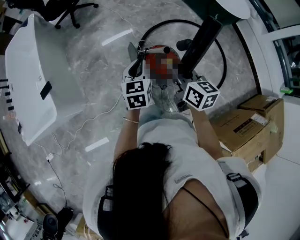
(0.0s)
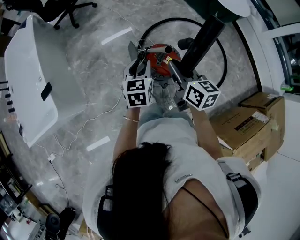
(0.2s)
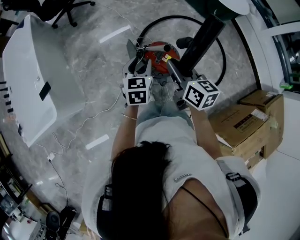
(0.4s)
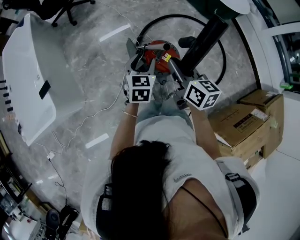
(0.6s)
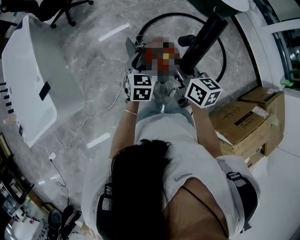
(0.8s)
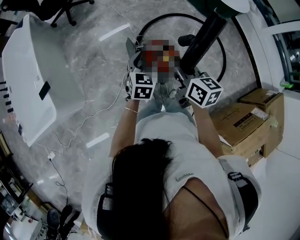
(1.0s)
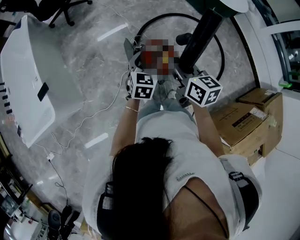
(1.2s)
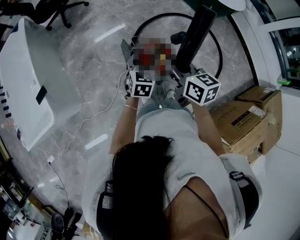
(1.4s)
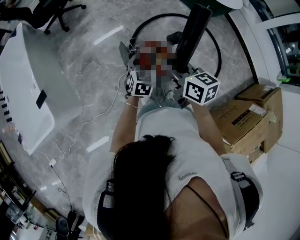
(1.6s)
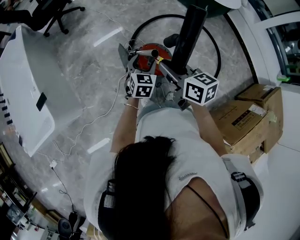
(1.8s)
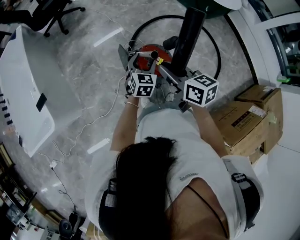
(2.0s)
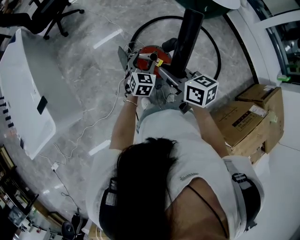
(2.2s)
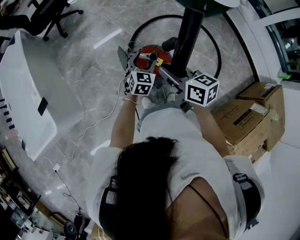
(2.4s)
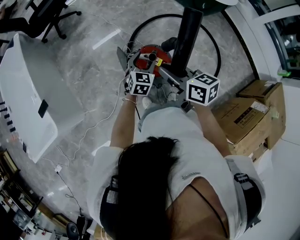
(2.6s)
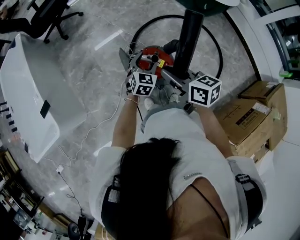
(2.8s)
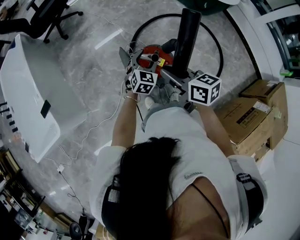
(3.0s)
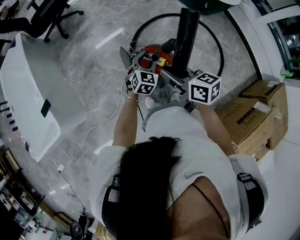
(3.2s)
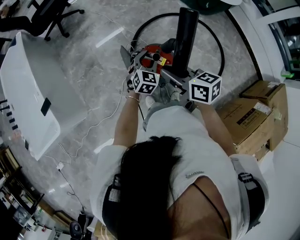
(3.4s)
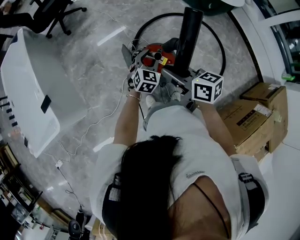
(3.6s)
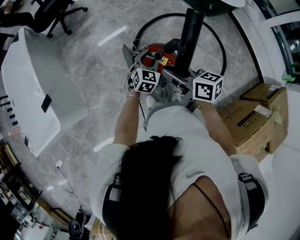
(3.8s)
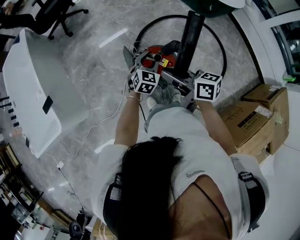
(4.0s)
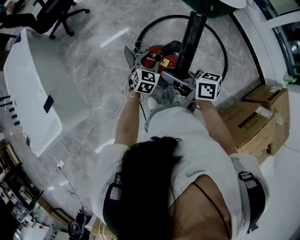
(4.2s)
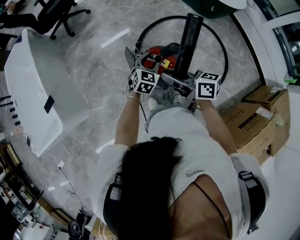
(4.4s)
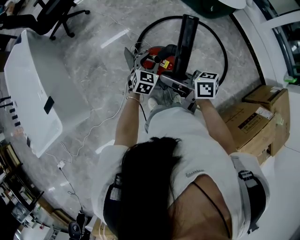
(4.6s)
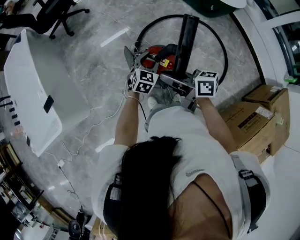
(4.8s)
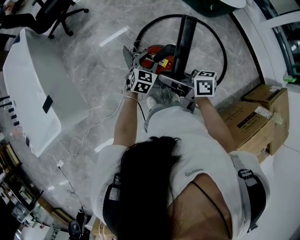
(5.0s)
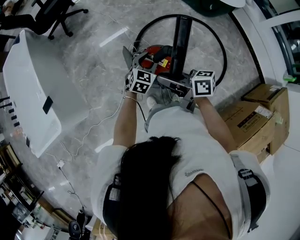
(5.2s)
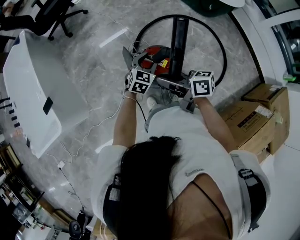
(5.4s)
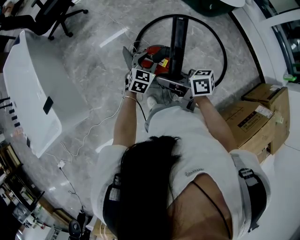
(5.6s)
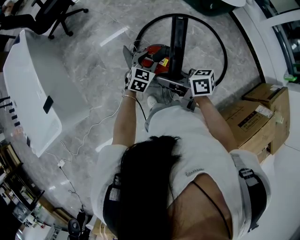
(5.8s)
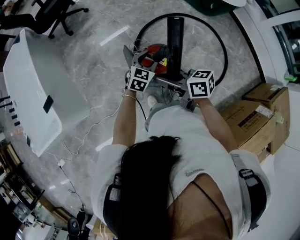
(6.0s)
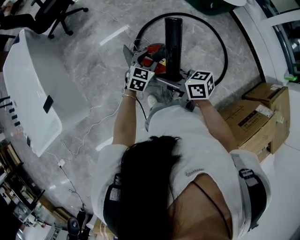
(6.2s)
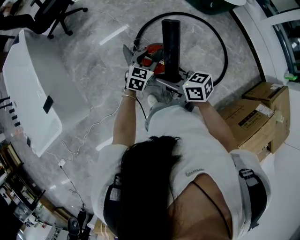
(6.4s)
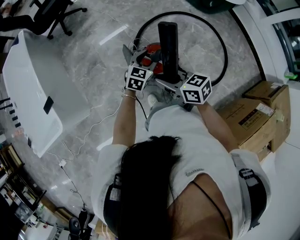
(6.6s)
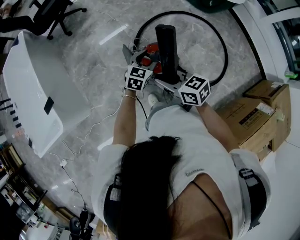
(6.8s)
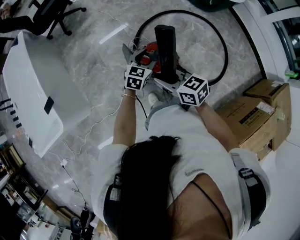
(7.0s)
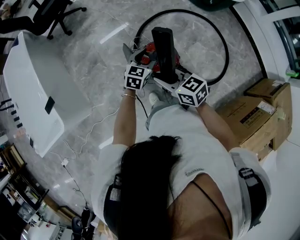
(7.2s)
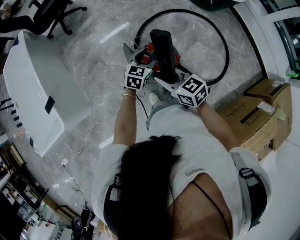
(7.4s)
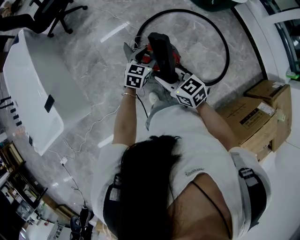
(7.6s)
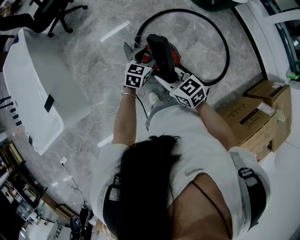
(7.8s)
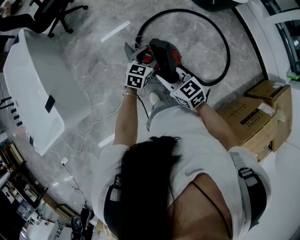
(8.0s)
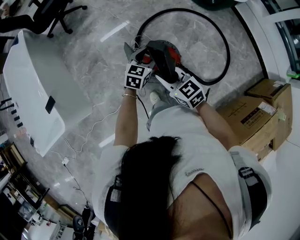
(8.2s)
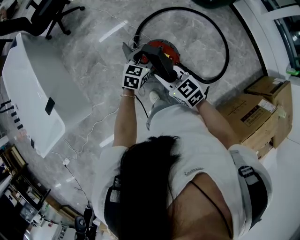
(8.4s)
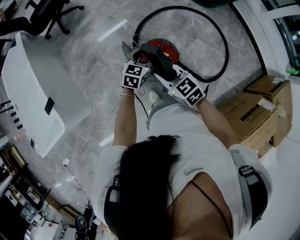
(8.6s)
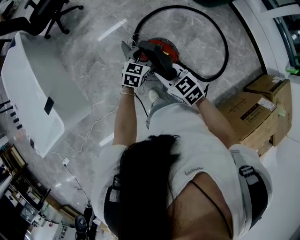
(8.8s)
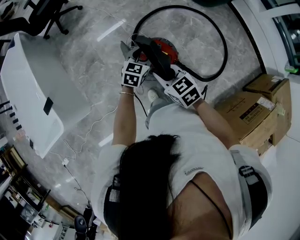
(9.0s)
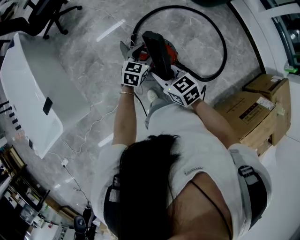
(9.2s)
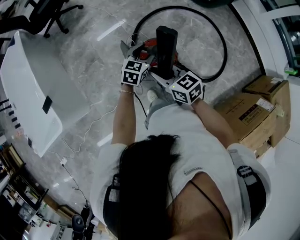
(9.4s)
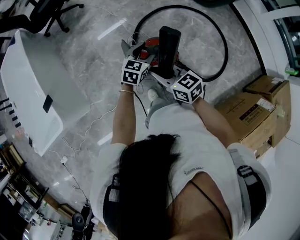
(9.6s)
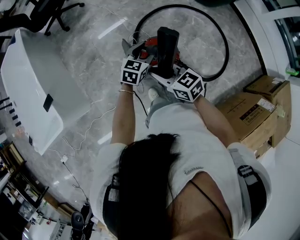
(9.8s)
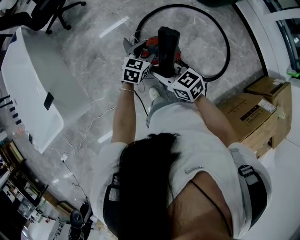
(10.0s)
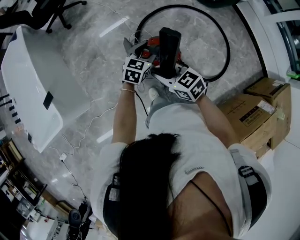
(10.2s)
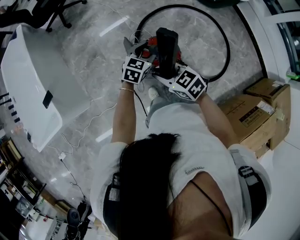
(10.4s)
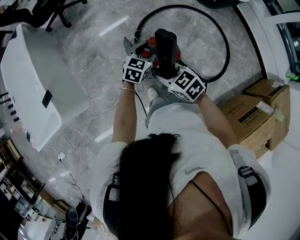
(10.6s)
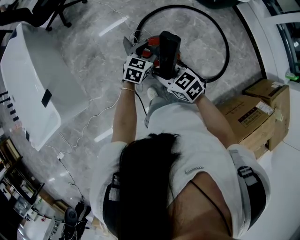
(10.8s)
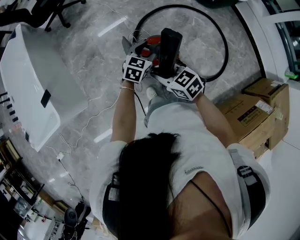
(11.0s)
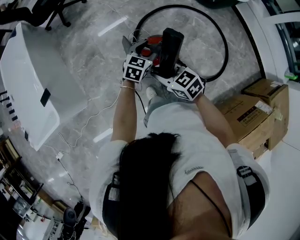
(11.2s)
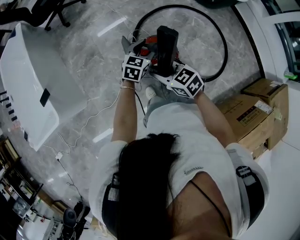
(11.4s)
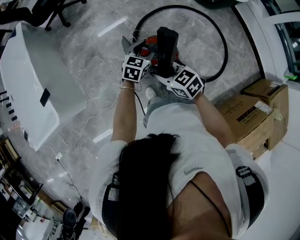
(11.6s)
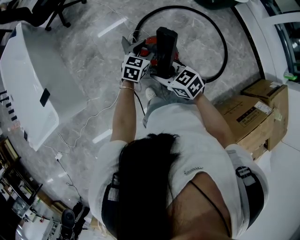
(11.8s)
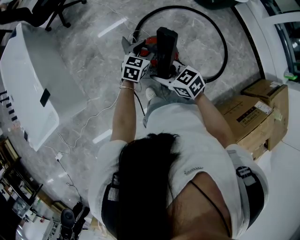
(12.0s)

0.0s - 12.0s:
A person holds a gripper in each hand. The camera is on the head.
0.0s - 1.6s: The left gripper goes some 10 cm to the right and downward, swivels roughly 20 degrees, and opens.
1.6s - 3.0s: The left gripper ends up roughly 5 cm from where it was.
3.0s - 4.4s: The left gripper closes.
4.4s - 6.0s: The grippers move only a little.
6.0s - 7.6s: The right gripper changes its angle by about 30 degrees.
7.6s - 10.4s: The grippers make only small movements.
10.4s - 12.0s: The right gripper opens its fingers.

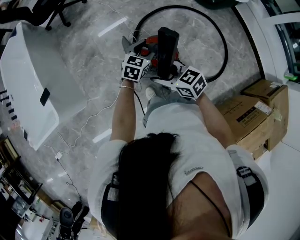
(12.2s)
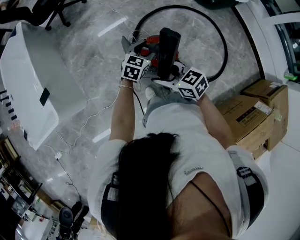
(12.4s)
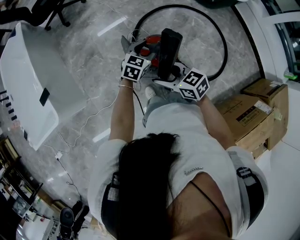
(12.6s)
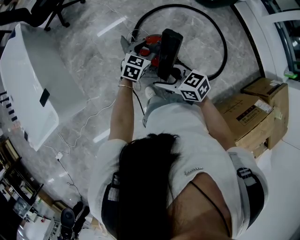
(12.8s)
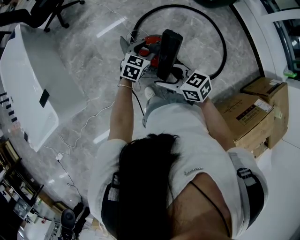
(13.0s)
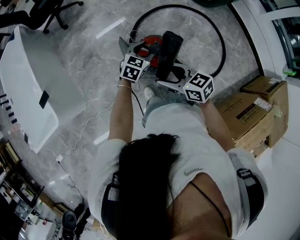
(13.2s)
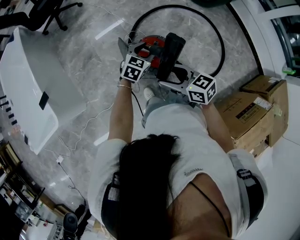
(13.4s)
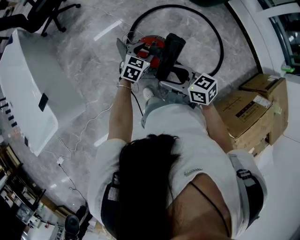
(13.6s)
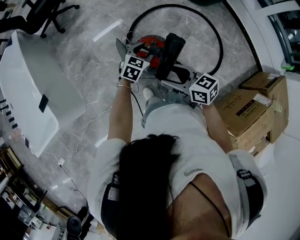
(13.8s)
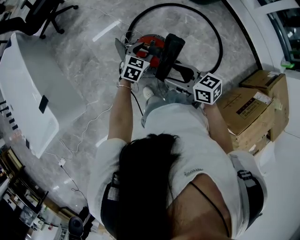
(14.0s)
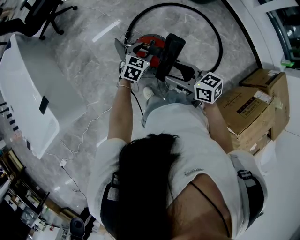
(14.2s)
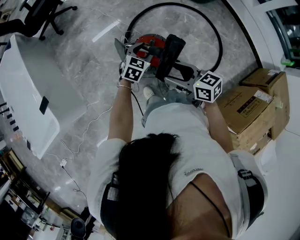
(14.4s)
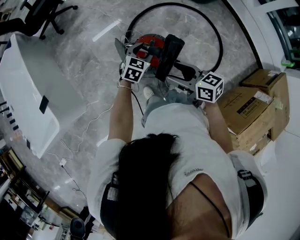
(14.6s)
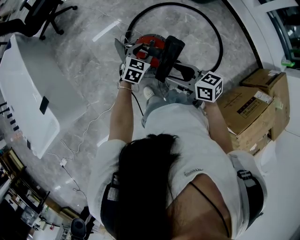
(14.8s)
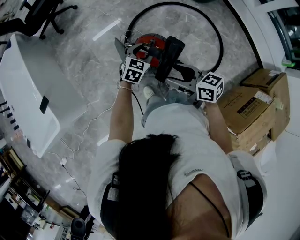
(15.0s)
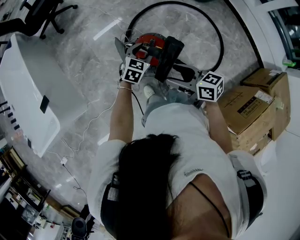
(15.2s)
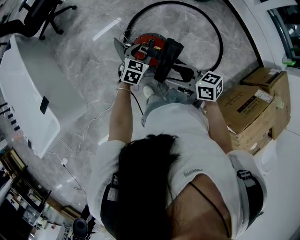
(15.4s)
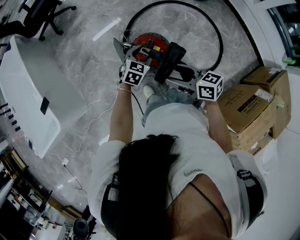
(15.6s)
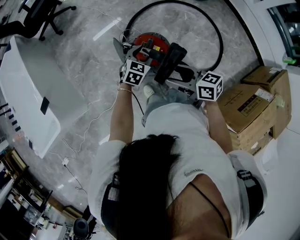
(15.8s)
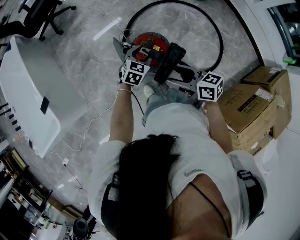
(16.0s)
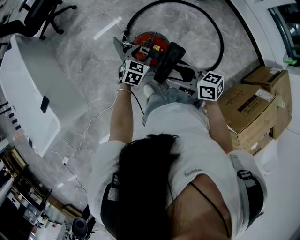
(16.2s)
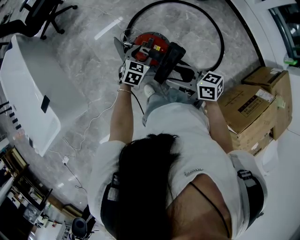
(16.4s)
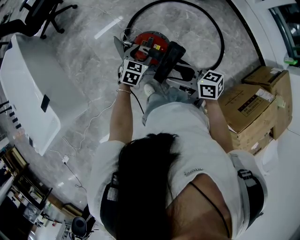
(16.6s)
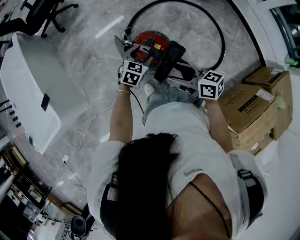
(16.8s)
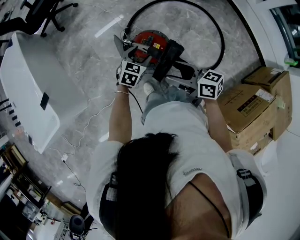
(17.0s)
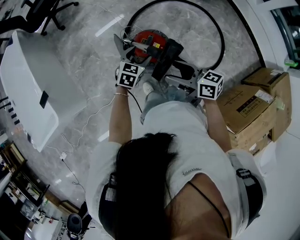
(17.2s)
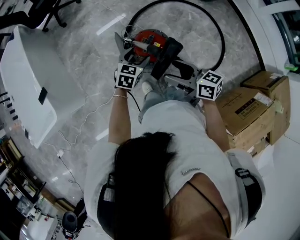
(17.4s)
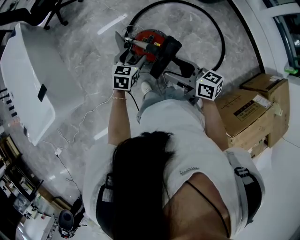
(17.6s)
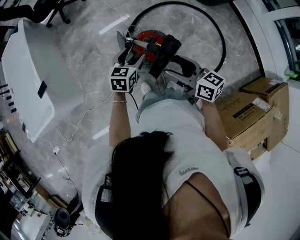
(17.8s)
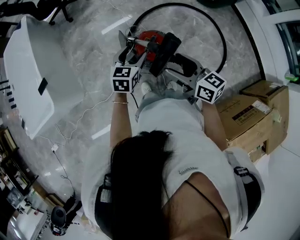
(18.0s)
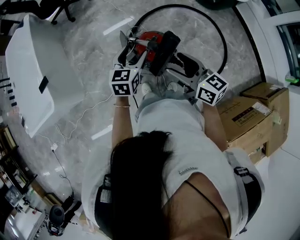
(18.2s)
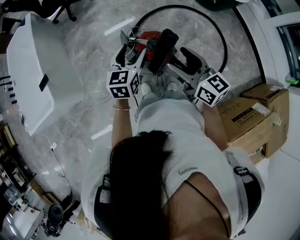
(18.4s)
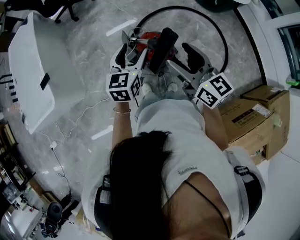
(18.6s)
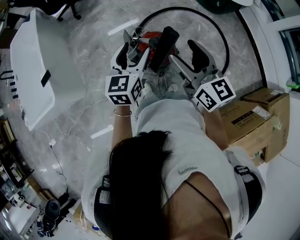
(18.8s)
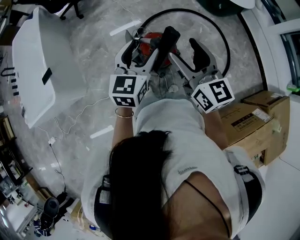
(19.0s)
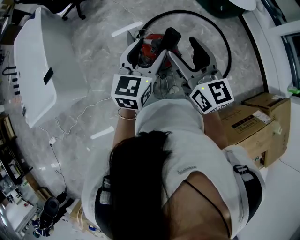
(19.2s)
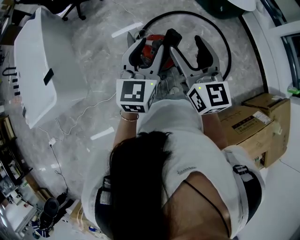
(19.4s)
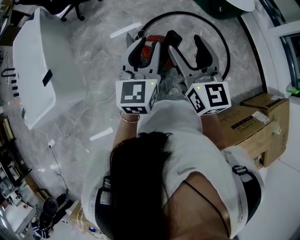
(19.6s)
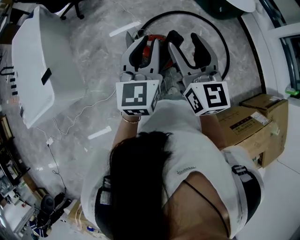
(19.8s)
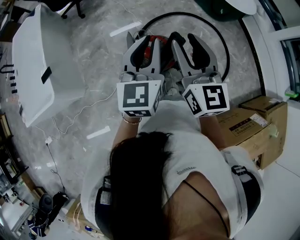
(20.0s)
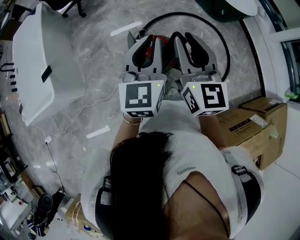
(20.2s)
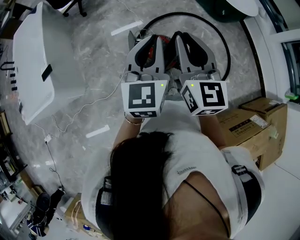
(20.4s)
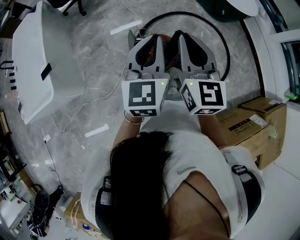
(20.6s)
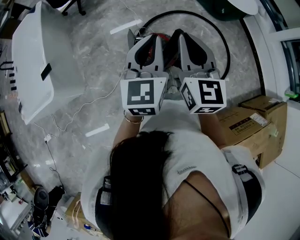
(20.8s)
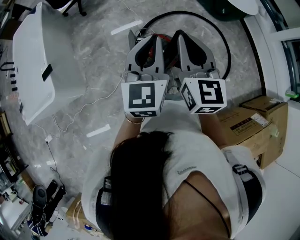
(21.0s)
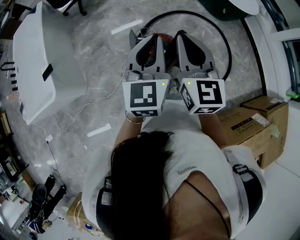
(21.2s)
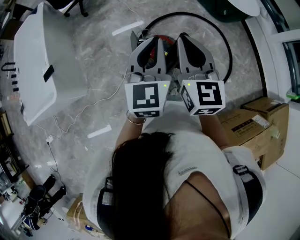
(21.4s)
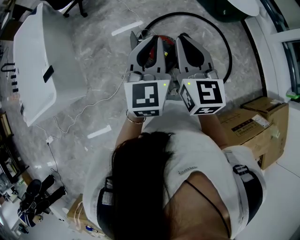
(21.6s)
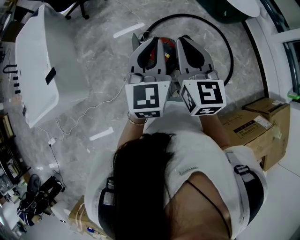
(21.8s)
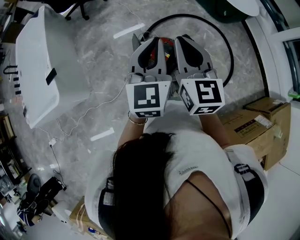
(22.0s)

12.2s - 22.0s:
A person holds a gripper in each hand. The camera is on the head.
12.2s - 13.6s: The right gripper is displaced to the right by about 5 cm.
13.6s - 16.4s: The grippers move only a little.
16.4s - 17.8s: The left gripper travels upward by some 5 cm, and changes its angle by some 20 degrees.
17.8s - 19.2s: Both grippers travel together upward, roughly 20 cm. The left gripper rotates about 20 degrees. Meanwhile the right gripper changes its angle by some 30 degrees.
19.2s - 20.6s: The right gripper closes up, while the left gripper is displaced upward by some 5 cm, and closes its fingers.
20.6s - 22.0s: The grippers make only small movements.

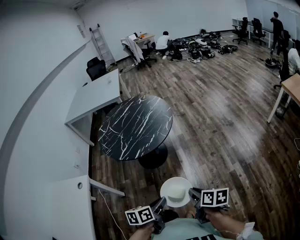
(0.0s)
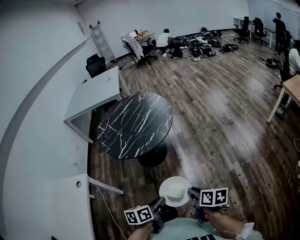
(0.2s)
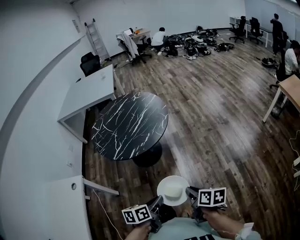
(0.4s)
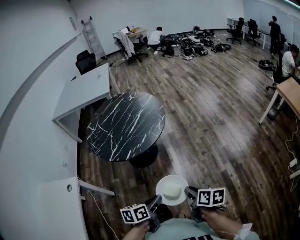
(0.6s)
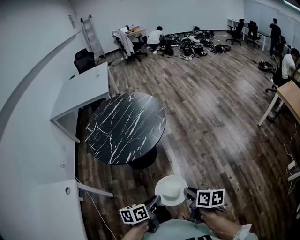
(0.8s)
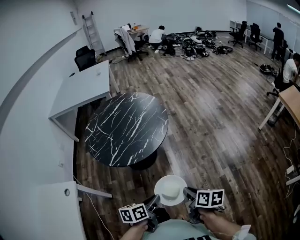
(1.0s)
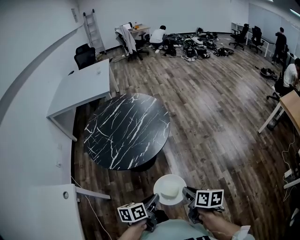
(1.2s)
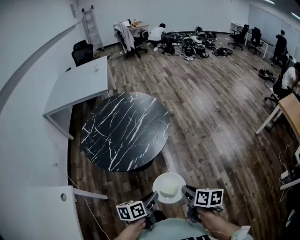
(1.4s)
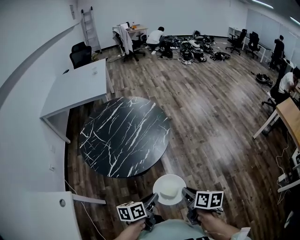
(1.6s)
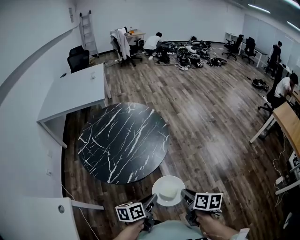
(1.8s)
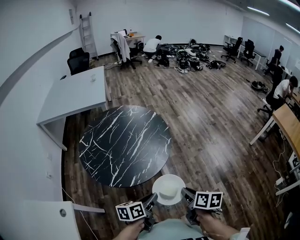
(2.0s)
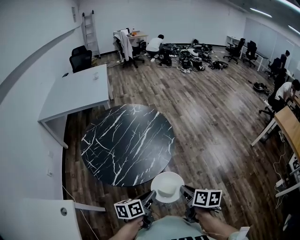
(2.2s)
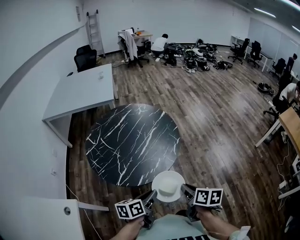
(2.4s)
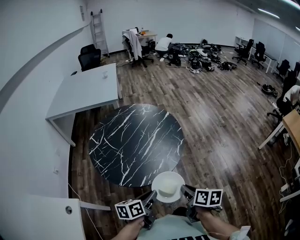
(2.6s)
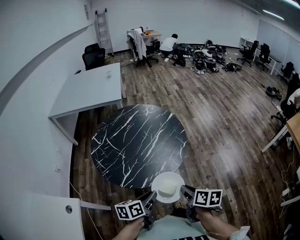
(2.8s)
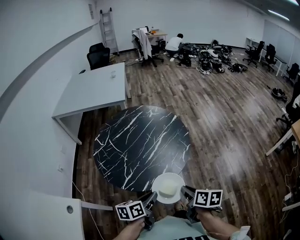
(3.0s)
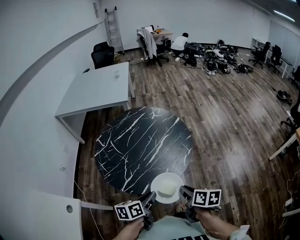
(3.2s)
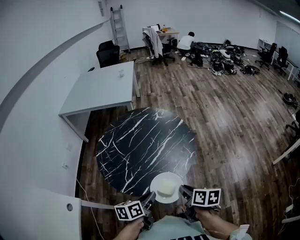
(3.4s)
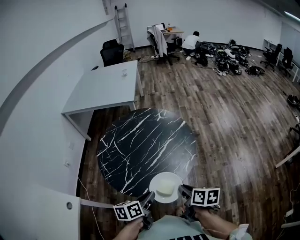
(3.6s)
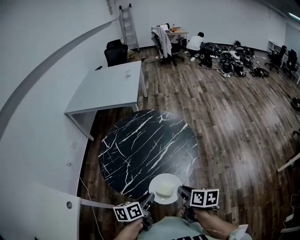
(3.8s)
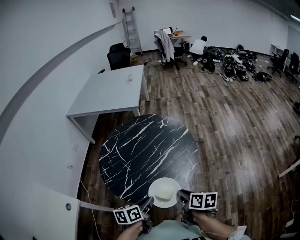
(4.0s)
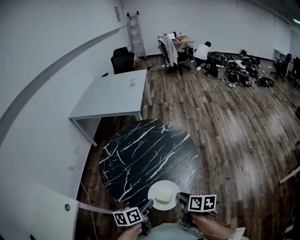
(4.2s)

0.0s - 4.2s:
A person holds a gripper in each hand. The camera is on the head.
0.0s - 1.4s: The two grippers go some 20 cm forward.
1.4s - 2.8s: The grippers both shift to the left and forward by about 15 cm.
2.8s - 4.2s: Both grippers move forward, roughly 15 cm.
